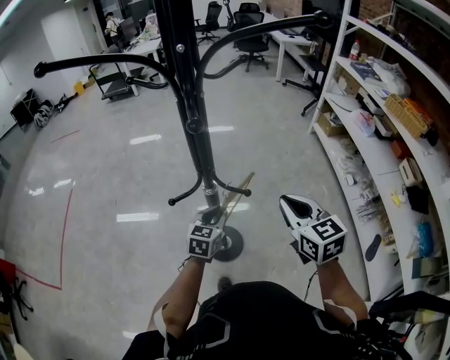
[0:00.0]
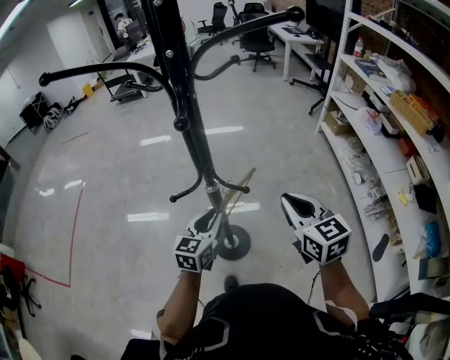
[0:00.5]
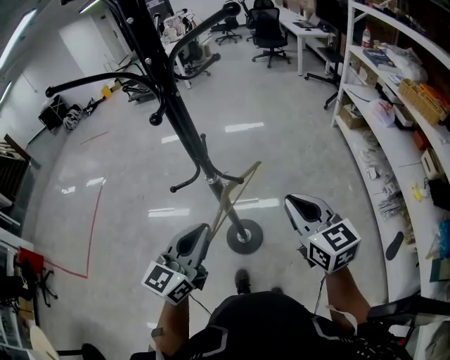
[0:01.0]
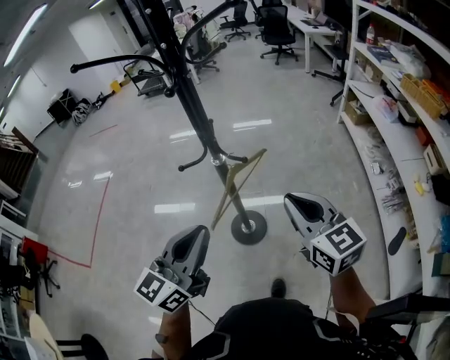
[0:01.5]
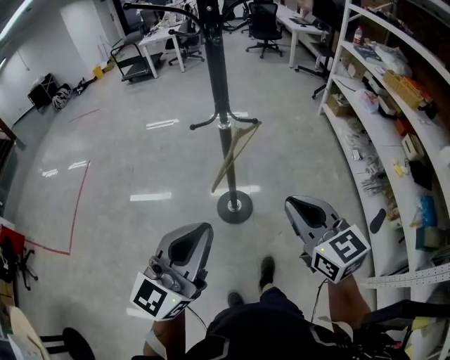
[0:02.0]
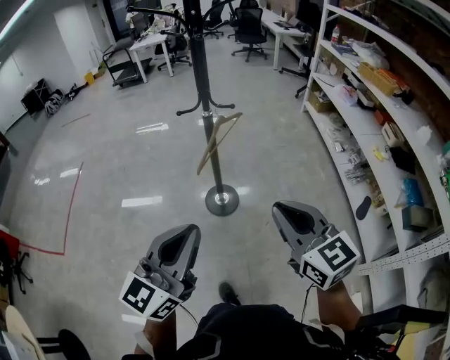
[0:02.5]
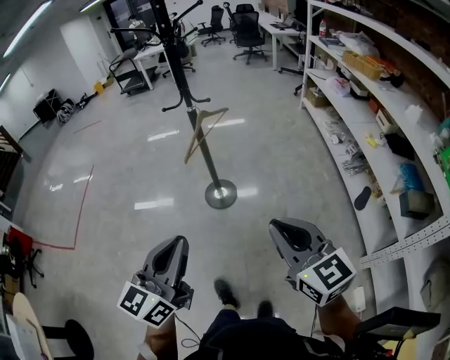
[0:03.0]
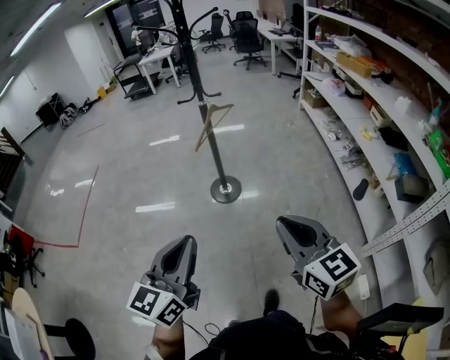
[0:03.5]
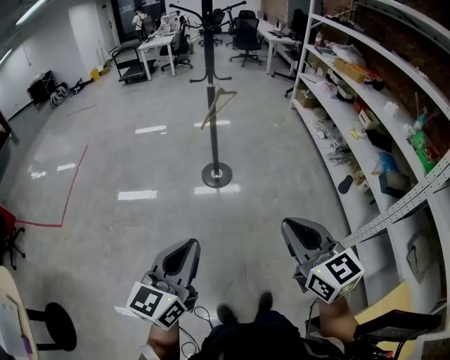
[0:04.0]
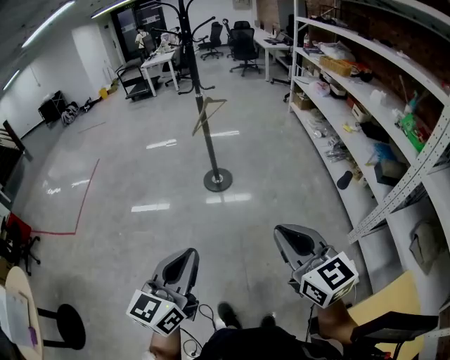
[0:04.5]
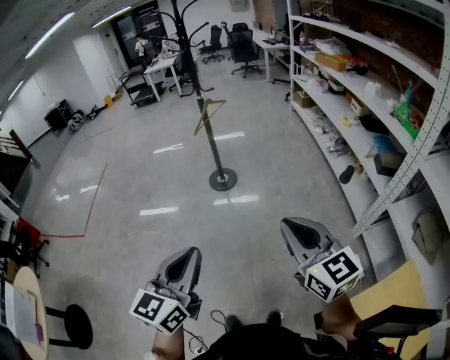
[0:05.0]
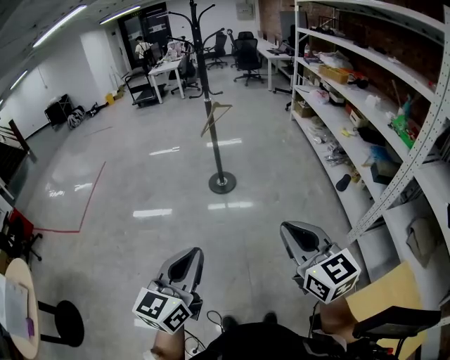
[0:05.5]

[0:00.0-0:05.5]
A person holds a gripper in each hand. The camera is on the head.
0:00.0 to 0:02.0: The left gripper travels backward and upward by approximately 50 cm, and tips its fingers upward by about 40 degrees; the right gripper shifts about 25 cm backward.
0:02.0 to 0:03.5: The two grippers go some 35 cm backward.
0:03.5 to 0:05.5: Both grippers move backward, roughly 30 cm.

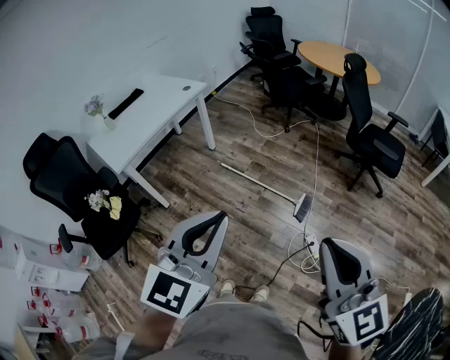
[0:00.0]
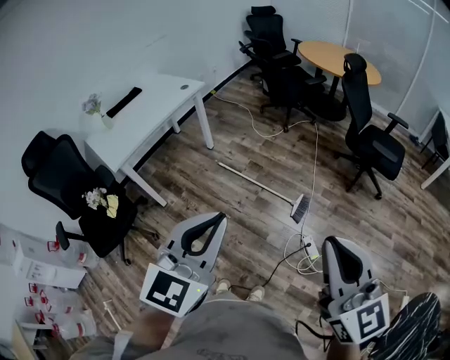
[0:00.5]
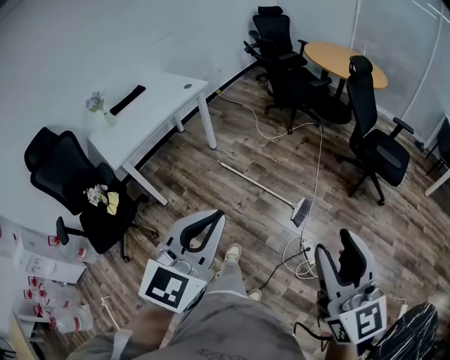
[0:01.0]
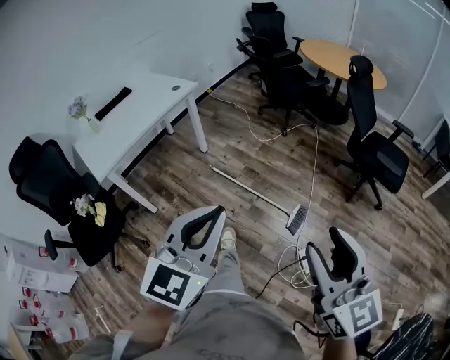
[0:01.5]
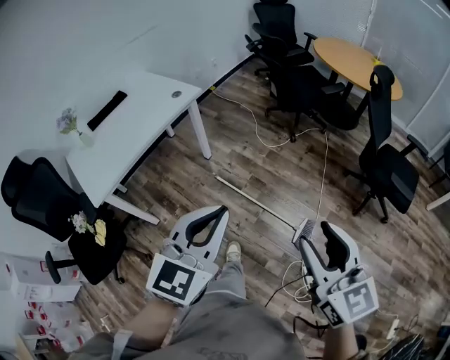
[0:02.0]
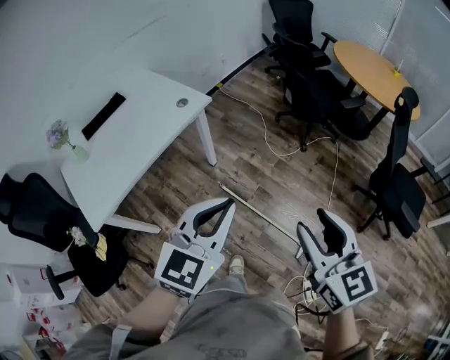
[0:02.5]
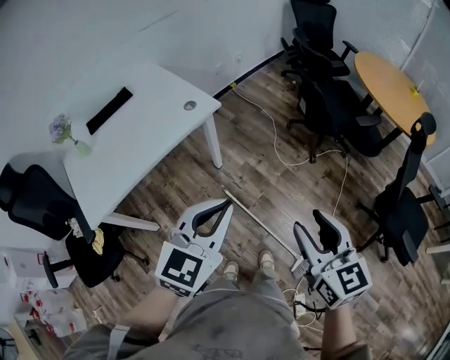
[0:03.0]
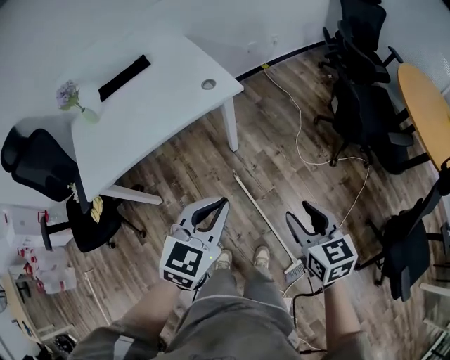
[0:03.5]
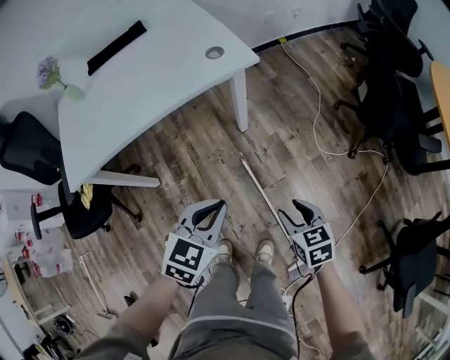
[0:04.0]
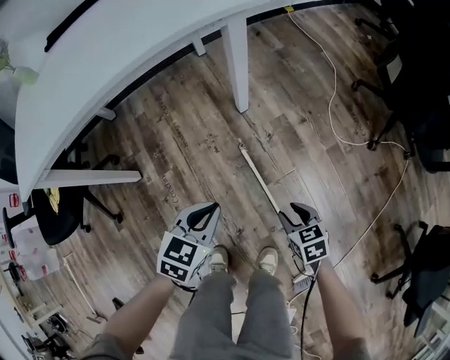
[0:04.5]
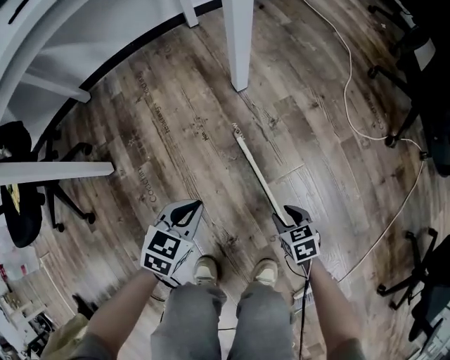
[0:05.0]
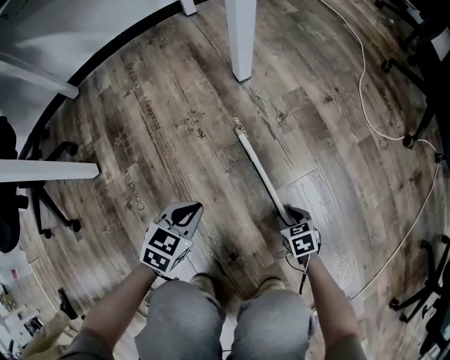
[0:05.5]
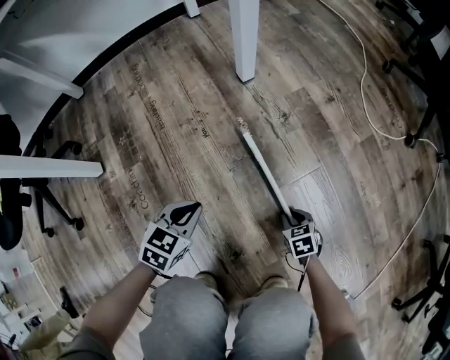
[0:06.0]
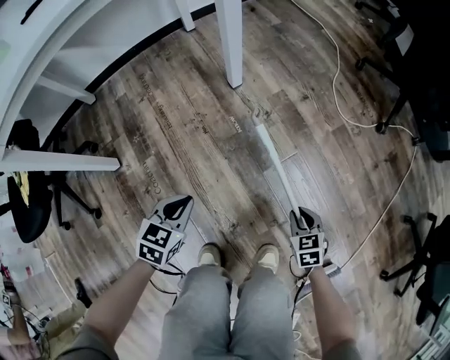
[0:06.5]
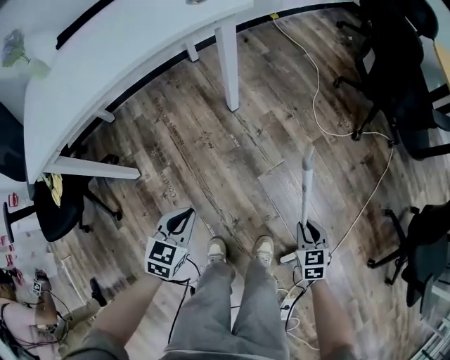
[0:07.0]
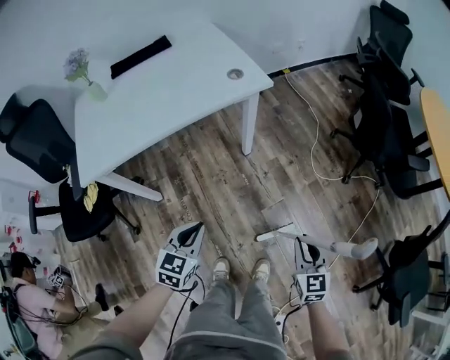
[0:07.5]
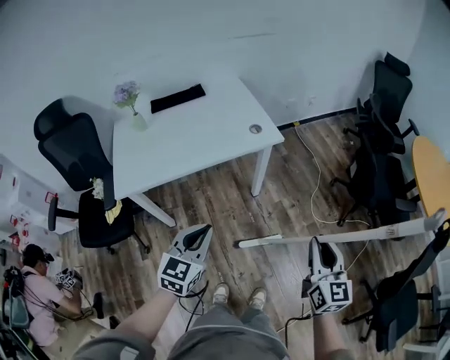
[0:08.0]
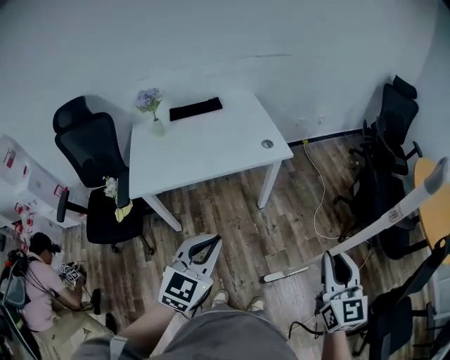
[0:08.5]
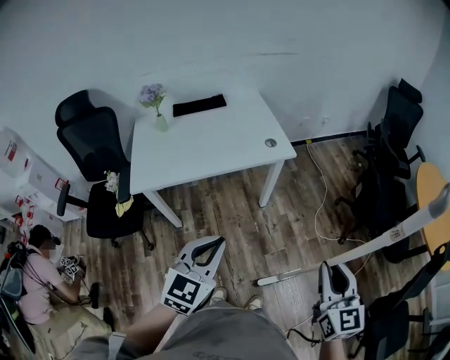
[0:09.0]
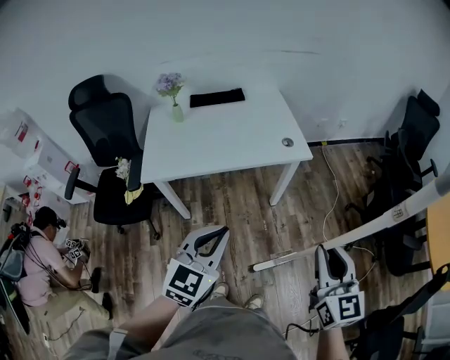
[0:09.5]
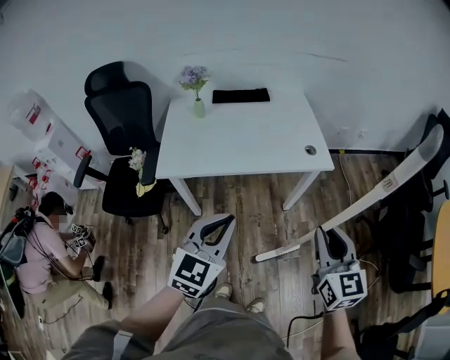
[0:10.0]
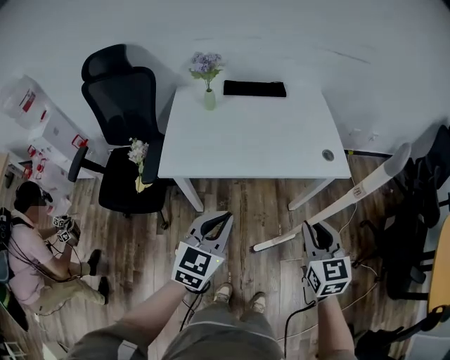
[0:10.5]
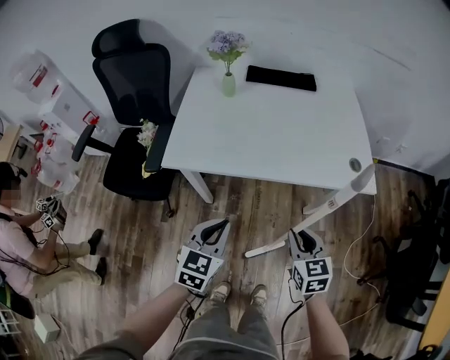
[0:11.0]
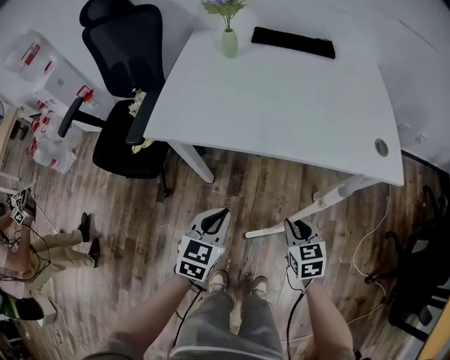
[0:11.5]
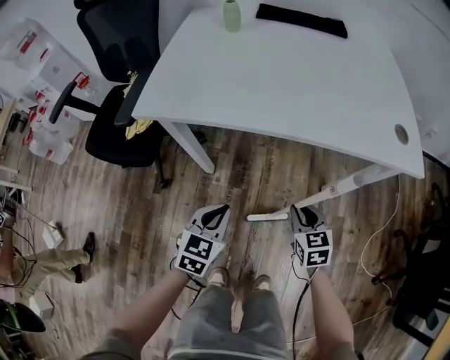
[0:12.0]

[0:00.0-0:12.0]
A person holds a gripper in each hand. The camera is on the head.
0:00.0 to 0:02.0: Both grippers travel together forward, roughly 30 cm. The right gripper opens up.
0:02.0 to 0:04.0: The left gripper changes place by some 40 cm, and changes its angle by approximately 40 degrees, while the right gripper ends up roughly 60 cm from where it was, and tips its fingers downward by some 40 degrees.
0:04.0 to 0:06.0: Both grippers move downward, approximately 60 cm. The right gripper closes.
0:06.0 to 0:08.0: Both grippers move upward, some 90 cm. The right gripper tilts its fingers some 60 degrees upward; the left gripper changes its angle by about 30 degrees.
0:08.0 to 0:10.0: The left gripper moves upward and to the left, about 10 cm. Meanwhile the right gripper moves to the left, forward and upward, approximately 20 cm, and swivels some 30 degrees.
0:10.0 to 0:12.0: The two grippers go approximately 50 cm downward. The right gripper rotates some 30 degrees. The left gripper swivels approximately 30 degrees.

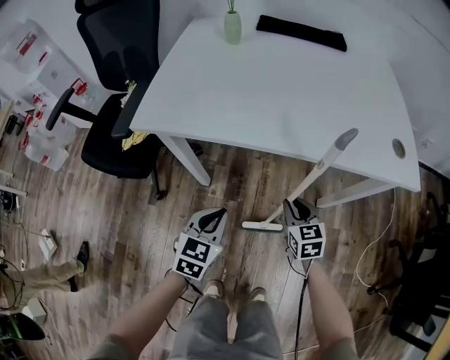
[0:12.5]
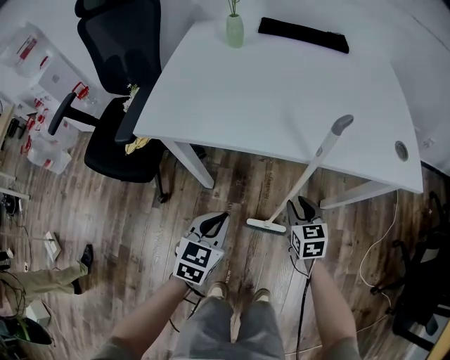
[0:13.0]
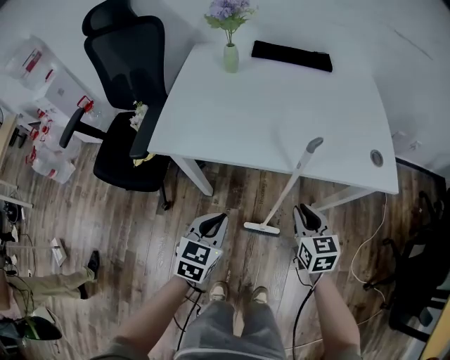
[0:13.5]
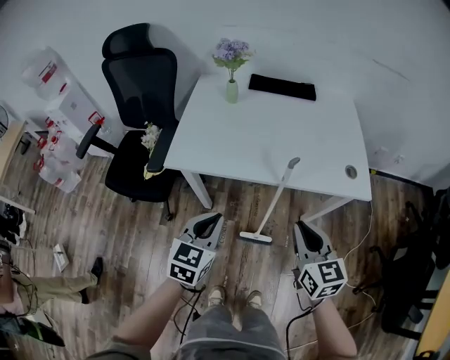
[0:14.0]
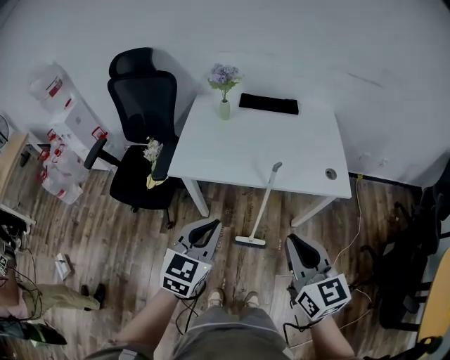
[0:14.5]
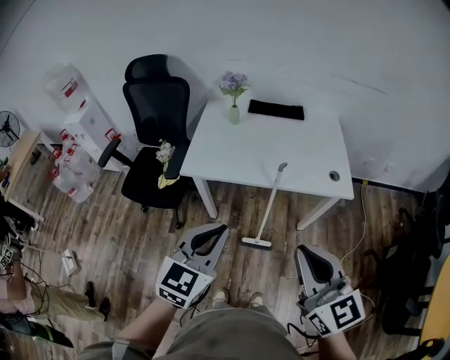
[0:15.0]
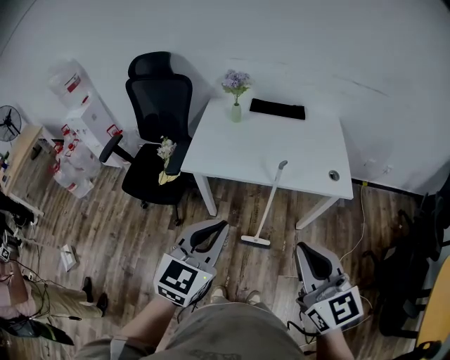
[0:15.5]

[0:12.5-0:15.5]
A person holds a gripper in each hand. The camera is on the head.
0:12.5 to 0:14.0: Both grippers move upward, about 30 cm.
0:14.0 to 0:15.5: Both grippers move upward and backward, roughly 25 cm.

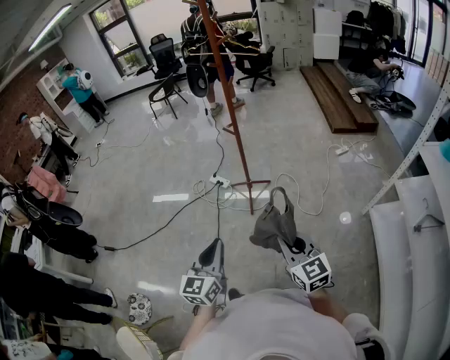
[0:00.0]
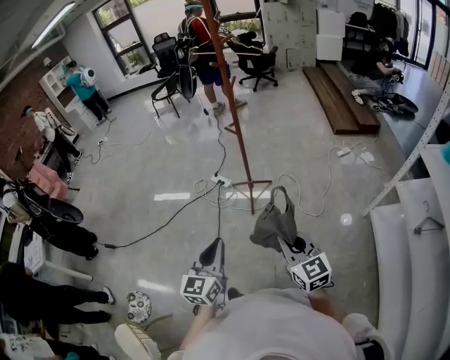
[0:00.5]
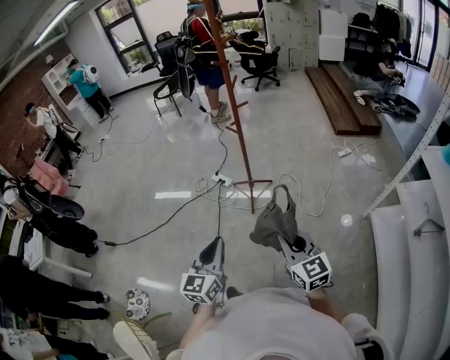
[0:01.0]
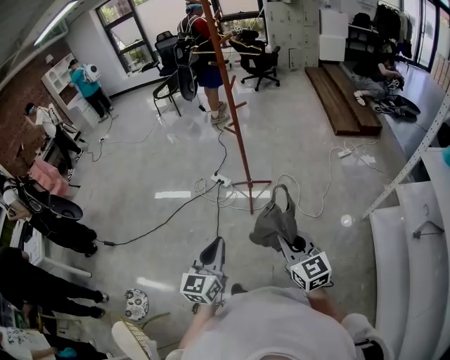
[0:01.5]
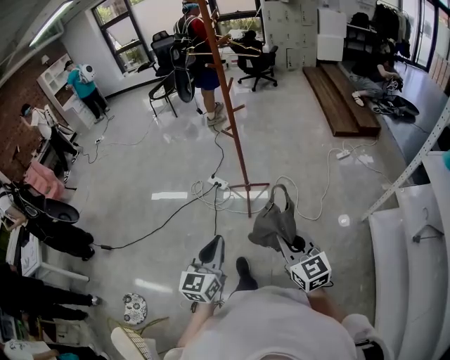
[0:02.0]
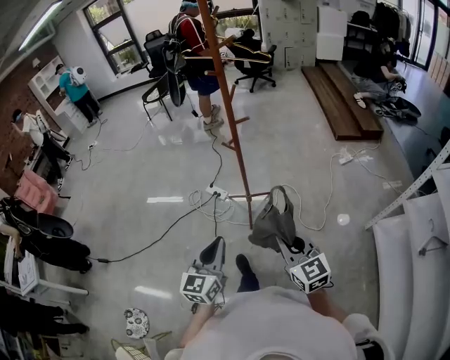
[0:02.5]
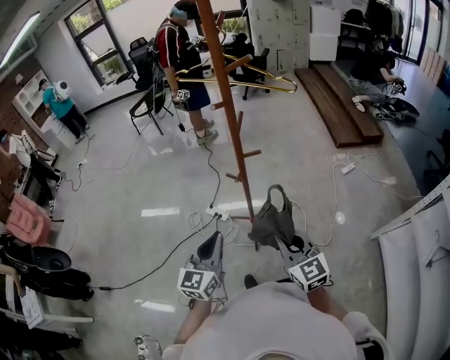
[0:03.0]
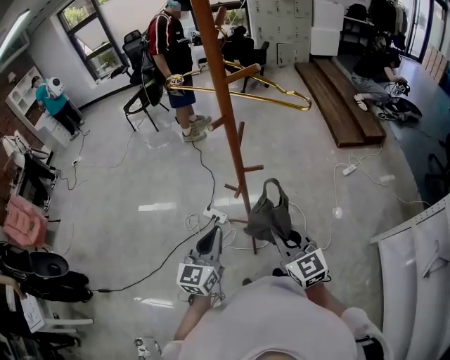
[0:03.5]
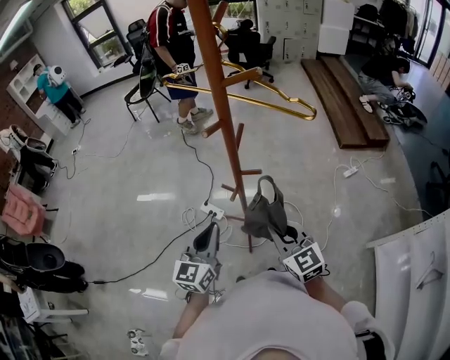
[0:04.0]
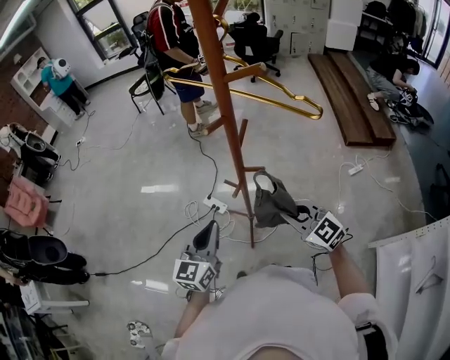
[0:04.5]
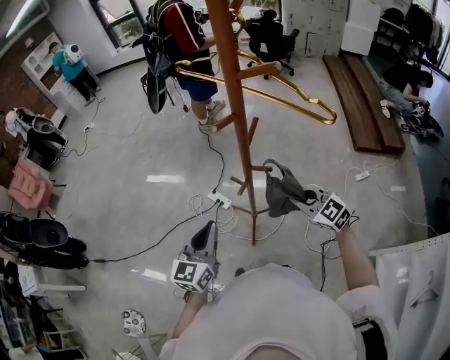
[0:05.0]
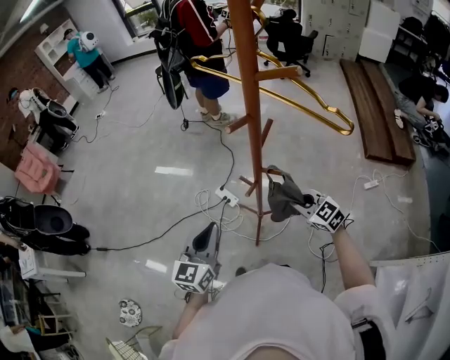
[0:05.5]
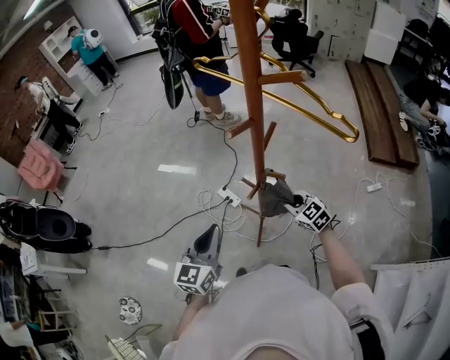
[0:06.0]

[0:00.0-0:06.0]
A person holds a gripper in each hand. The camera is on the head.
0:00.0 to 0:02.0: The right gripper moves roughly 5 cm. Meanwhile the left gripper shifts by roughly 5 cm.
0:02.0 to 0:04.0: The pair of grippers is taken forward, about 50 cm.
0:04.0 to 0:06.0: The right gripper is displaced downward and forward by about 20 cm, and swivels approximately 30 degrees.
